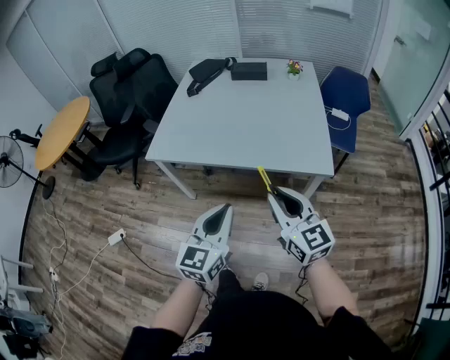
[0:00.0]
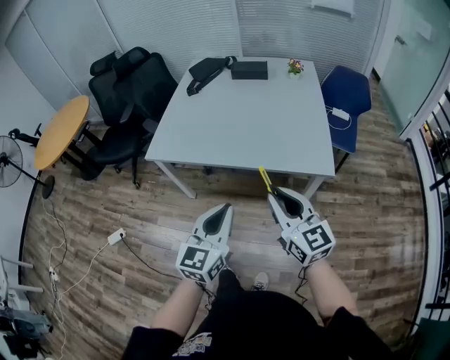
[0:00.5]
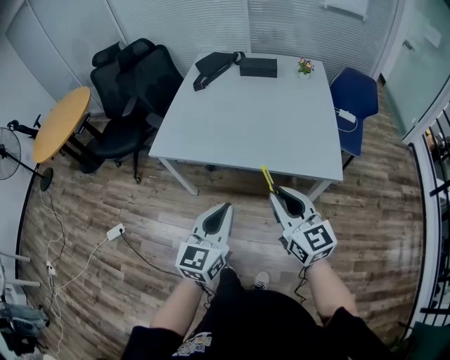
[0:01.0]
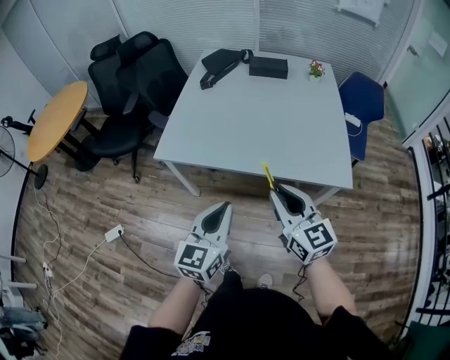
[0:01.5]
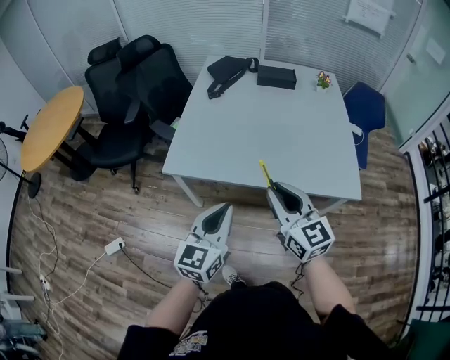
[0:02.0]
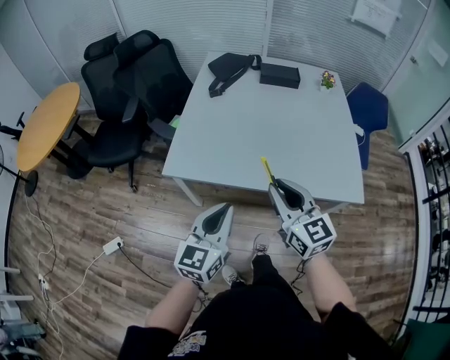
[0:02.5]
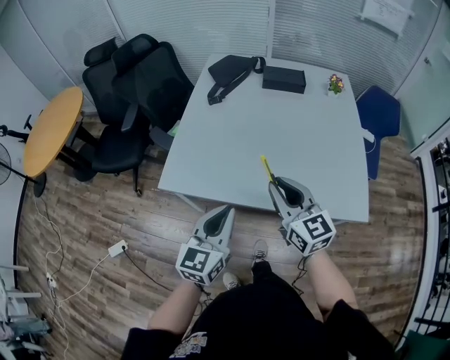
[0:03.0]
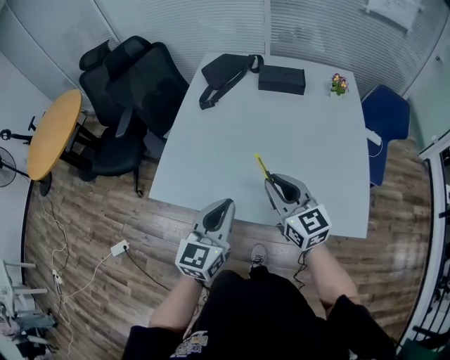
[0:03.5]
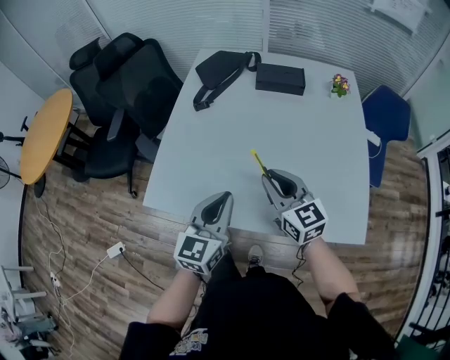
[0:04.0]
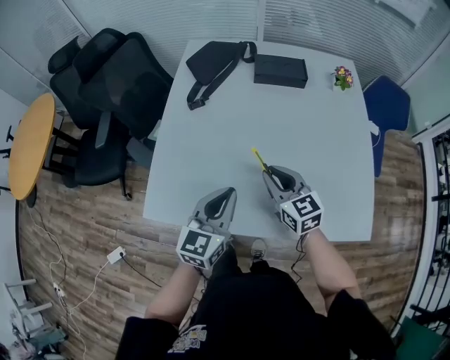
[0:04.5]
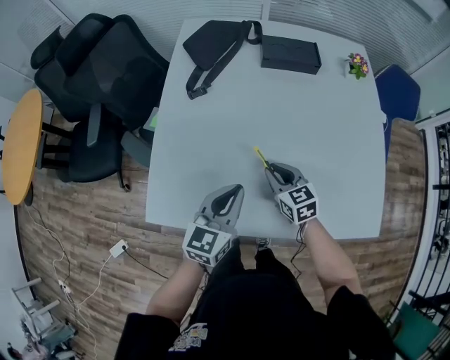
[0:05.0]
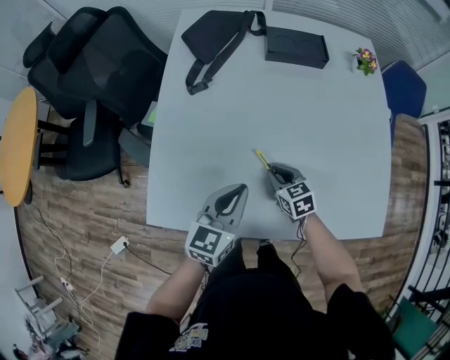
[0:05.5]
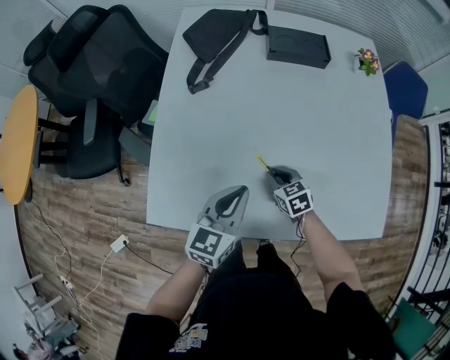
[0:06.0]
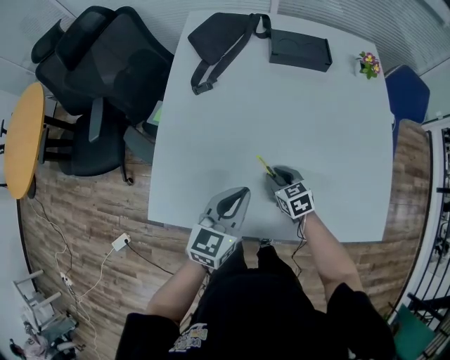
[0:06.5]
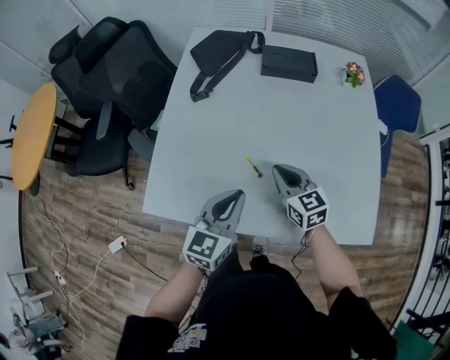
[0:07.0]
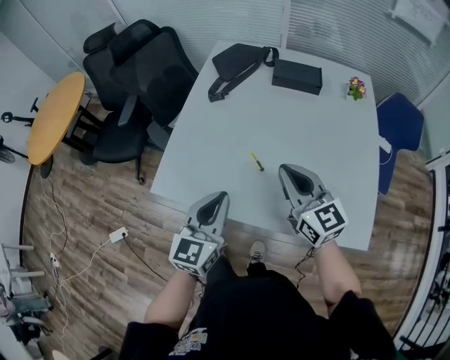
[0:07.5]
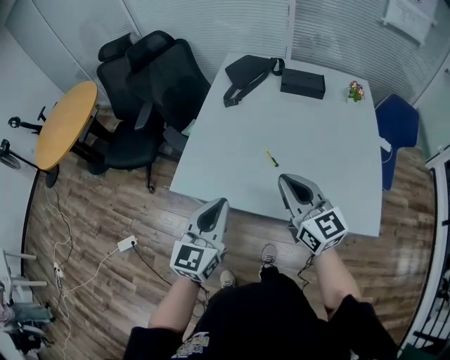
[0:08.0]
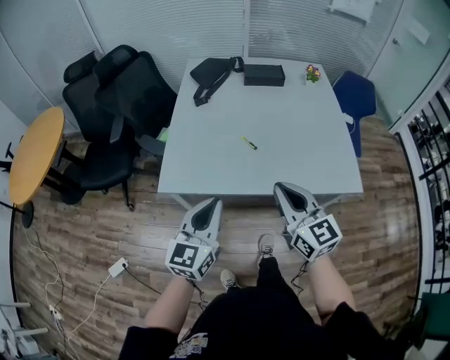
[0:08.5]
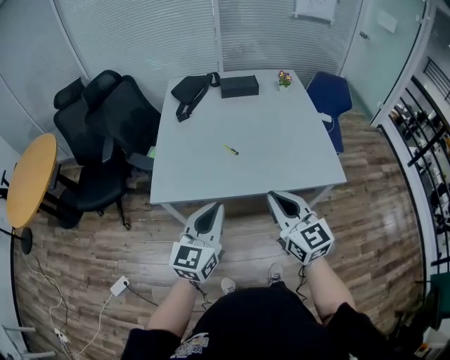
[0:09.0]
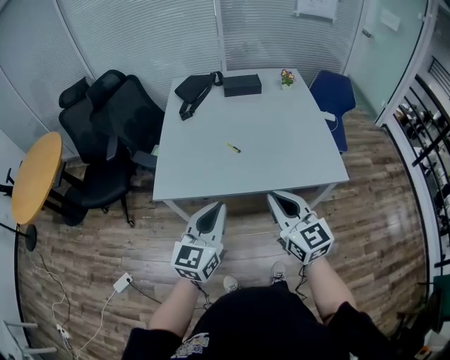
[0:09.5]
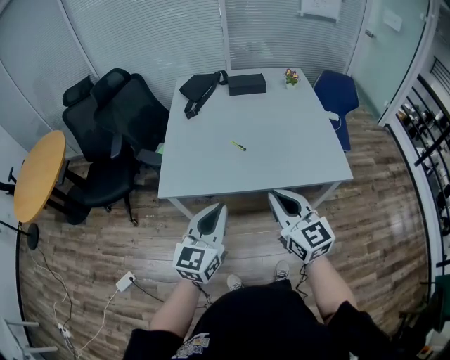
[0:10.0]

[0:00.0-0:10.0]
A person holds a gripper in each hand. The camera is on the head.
0:00.0 to 0:02.0: The two grippers go some 25 cm to the left and forward.
0:02.0 to 0:04.0: Both grippers move forward, roughly 25 cm.
0:04.0 to 0:06.0: The right gripper goes some 25 cm downward, and points its fingers some 40 degrees further downward. The left gripper moves downward and forward, some 15 cm.
0:06.0 to 0:08.0: The left gripper goes about 25 cm backward and upward, and swivels some 20 degrees, while the right gripper is displaced upward and backward by about 40 cm, and tilts its fingers some 50 degrees upward.
0:08.0 to 0:10.0: Both grippers travel together backward, approximately 15 cm.

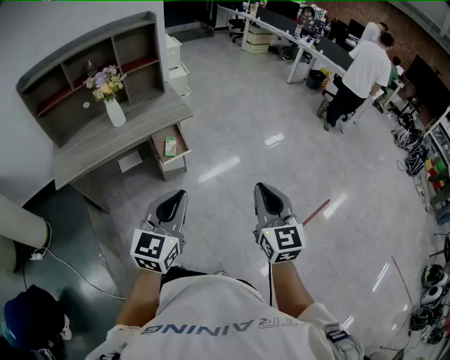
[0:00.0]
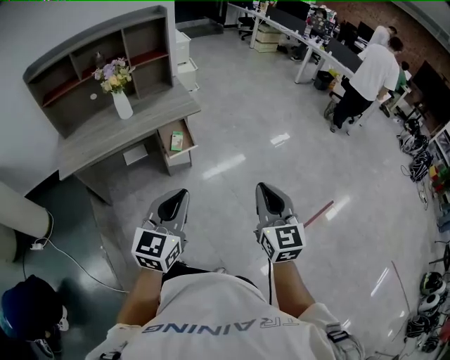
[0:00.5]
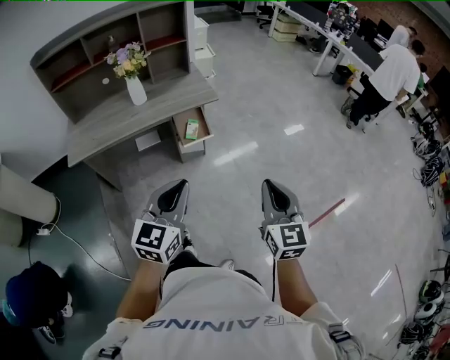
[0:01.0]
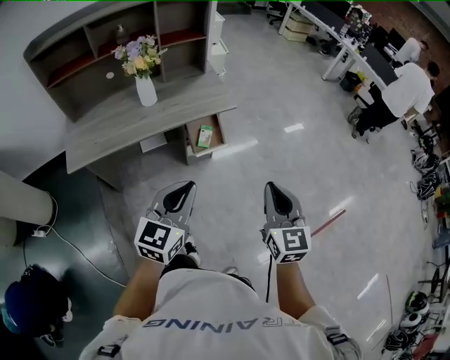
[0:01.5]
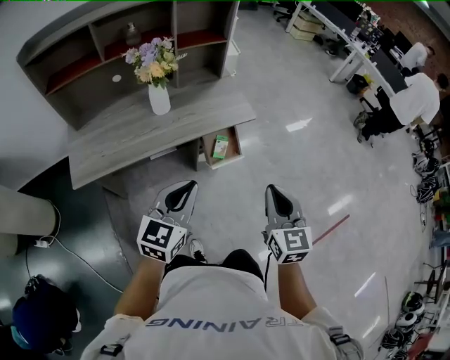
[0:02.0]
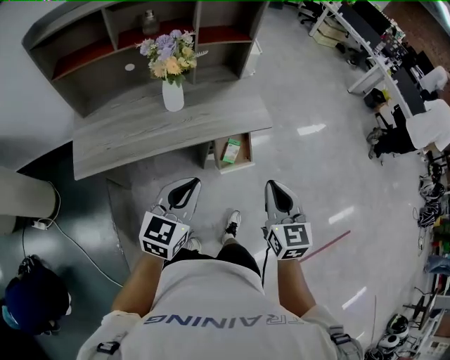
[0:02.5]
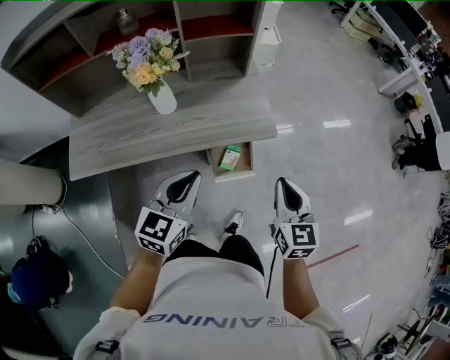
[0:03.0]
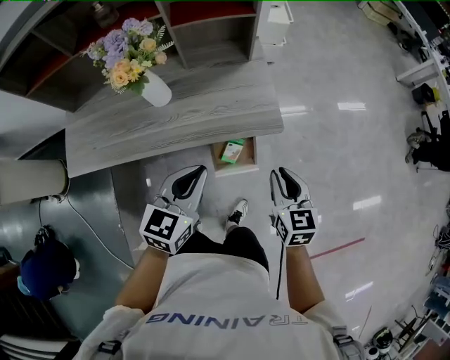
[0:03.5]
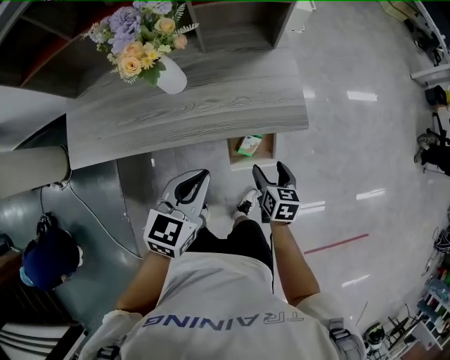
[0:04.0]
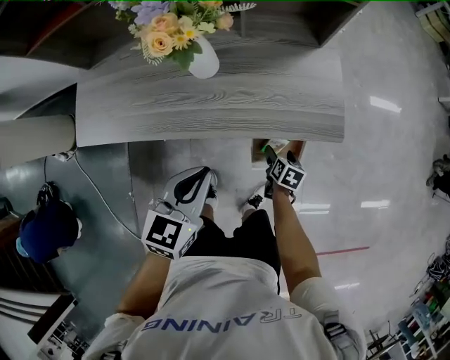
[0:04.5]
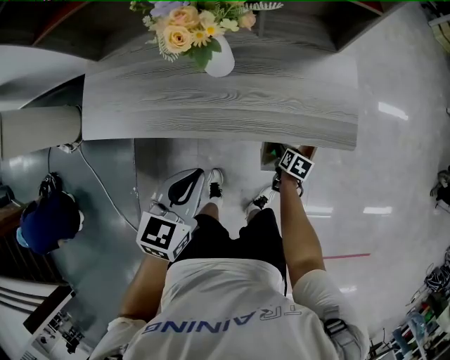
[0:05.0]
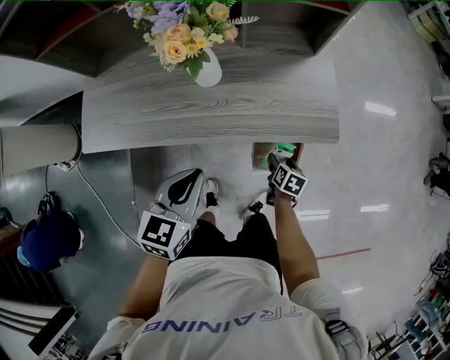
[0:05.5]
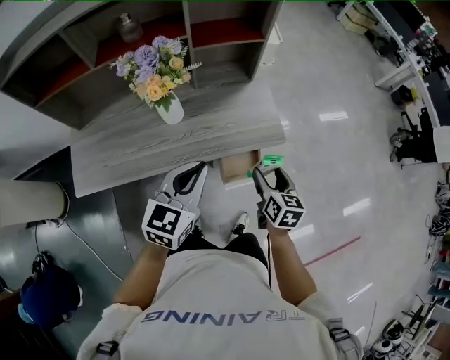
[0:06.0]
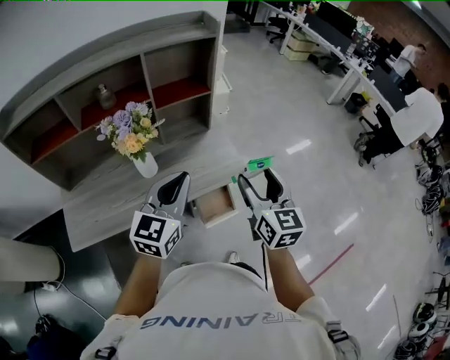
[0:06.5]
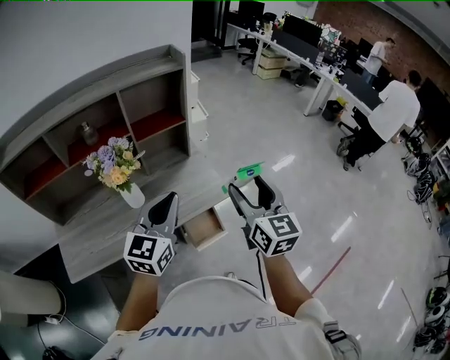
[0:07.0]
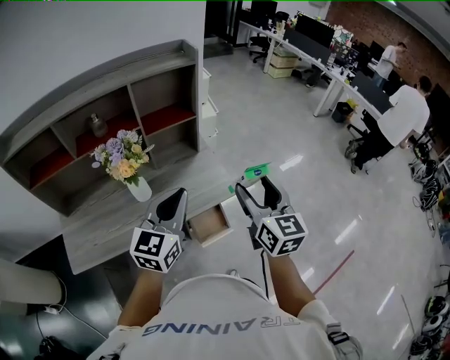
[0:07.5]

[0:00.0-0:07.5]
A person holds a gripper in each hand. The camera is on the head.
0:00.0 to 0:02.0: The two grippers go some 30 cm to the left and forward.
0:02.0 to 0:04.0: The left gripper heads forward and downward, covering about 25 cm, and changes its angle by some 20 degrees, while the right gripper goes about 40 cm downward and forward, tips its fingers downward by about 30 degrees, and opens.
0:04.0 to 0:05.5: The right gripper shifts approximately 15 cm downward. Meanwhile the left gripper goes about 10 cm to the left.
0:05.5 to 0:07.5: The right gripper moves upward, some 60 cm, and tilts its fingers some 50 degrees upward, while the left gripper goes roughly 30 cm upward and to the right, and tilts its fingers about 30 degrees upward.

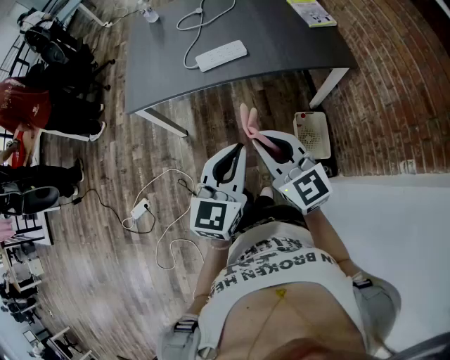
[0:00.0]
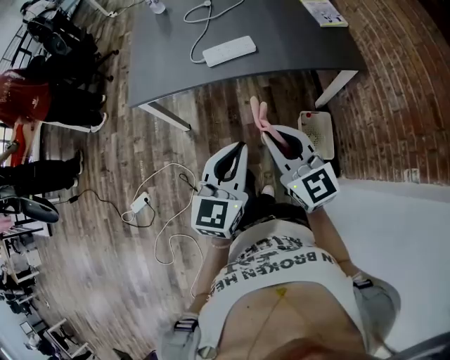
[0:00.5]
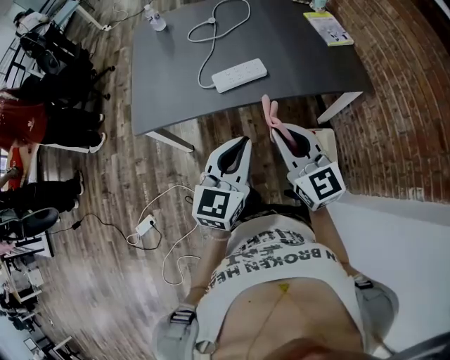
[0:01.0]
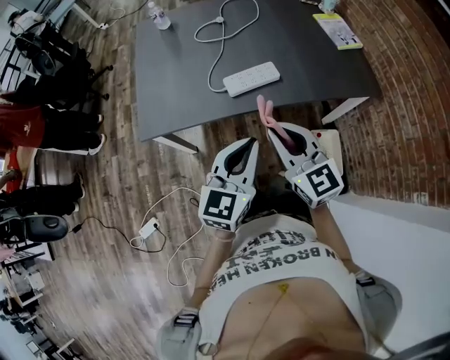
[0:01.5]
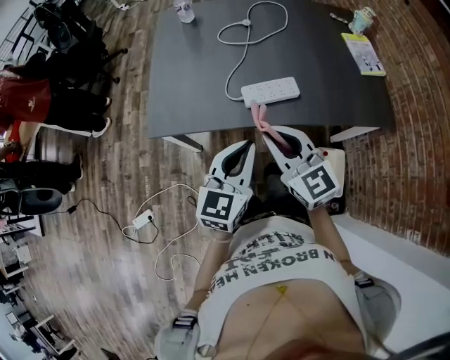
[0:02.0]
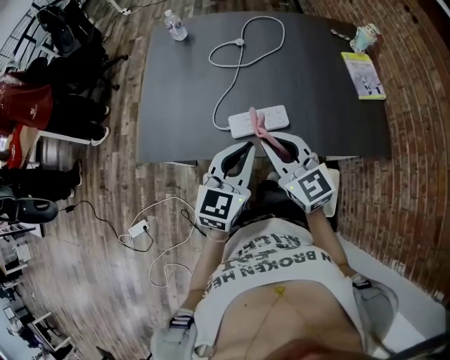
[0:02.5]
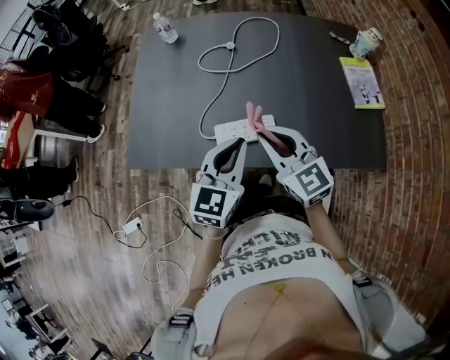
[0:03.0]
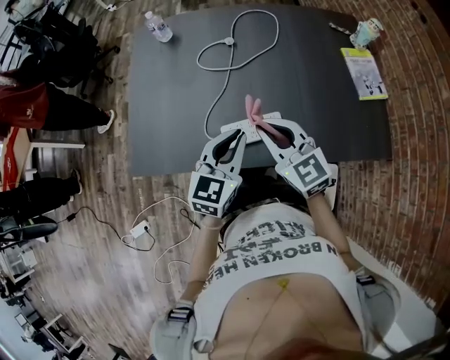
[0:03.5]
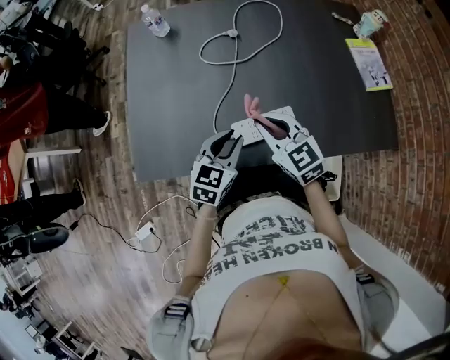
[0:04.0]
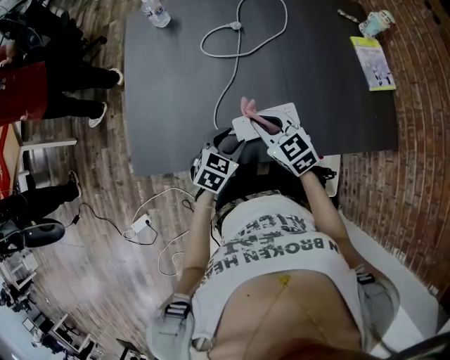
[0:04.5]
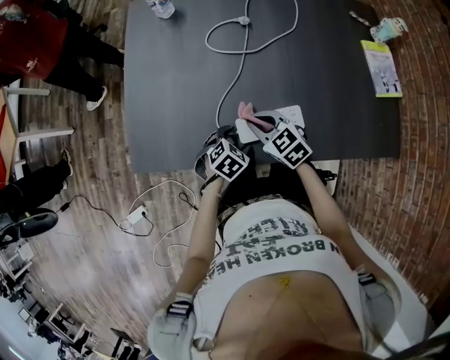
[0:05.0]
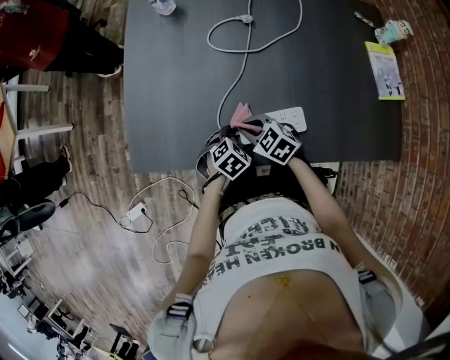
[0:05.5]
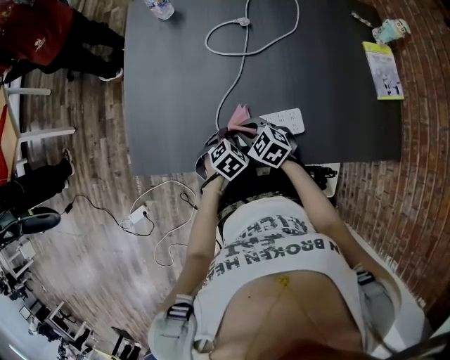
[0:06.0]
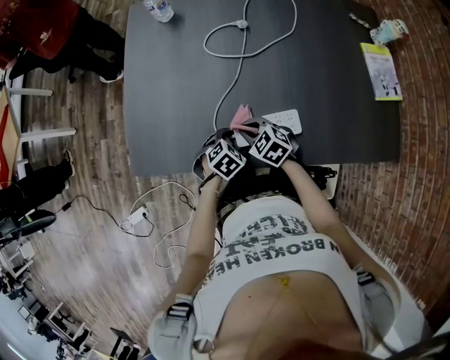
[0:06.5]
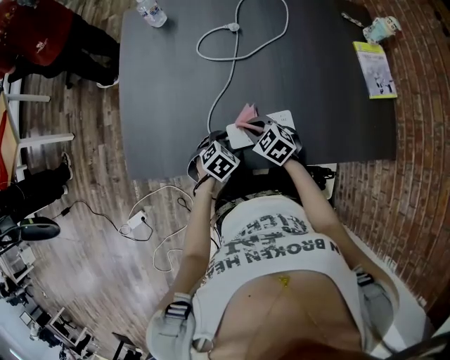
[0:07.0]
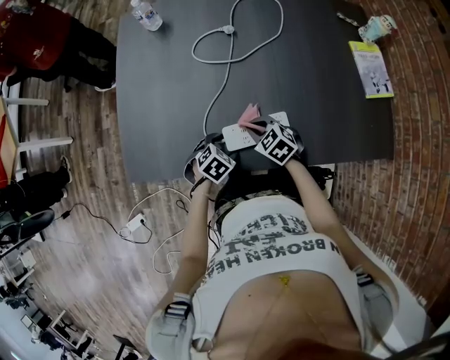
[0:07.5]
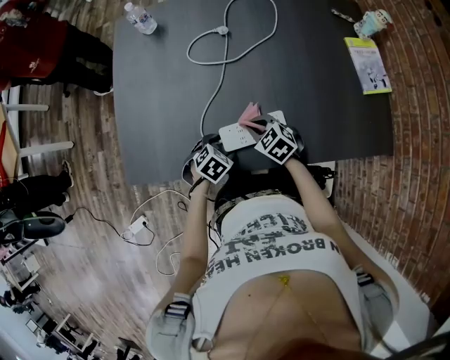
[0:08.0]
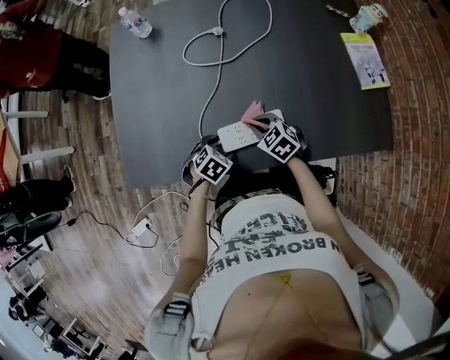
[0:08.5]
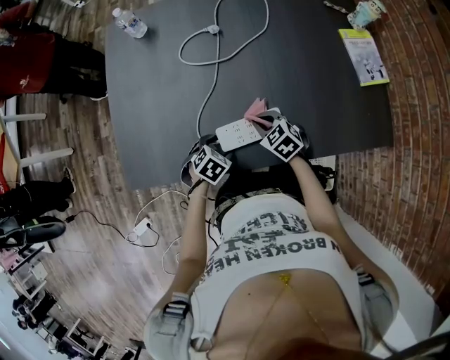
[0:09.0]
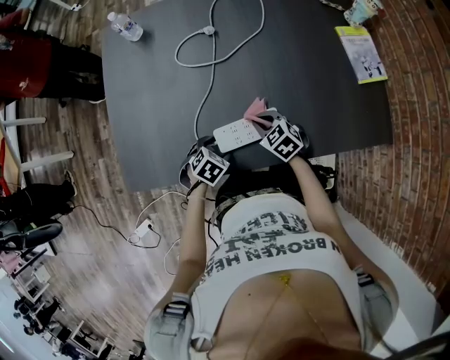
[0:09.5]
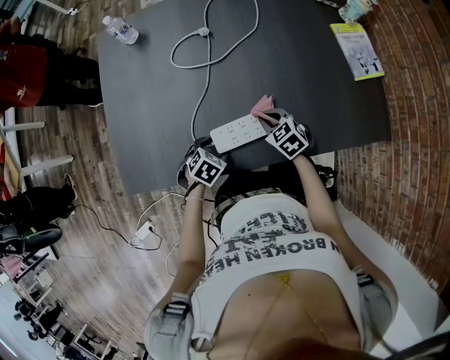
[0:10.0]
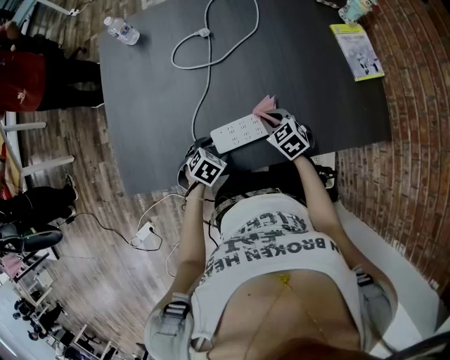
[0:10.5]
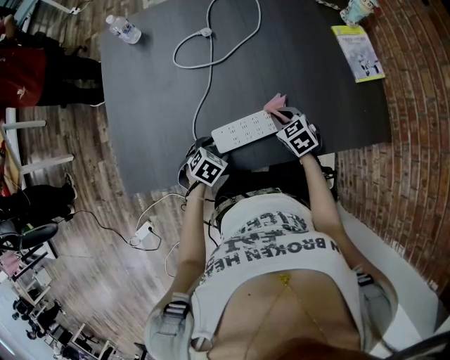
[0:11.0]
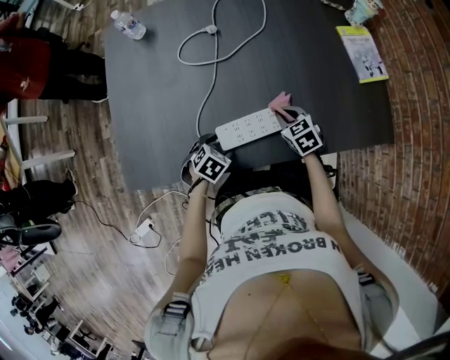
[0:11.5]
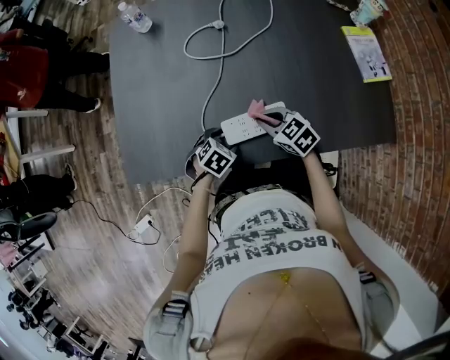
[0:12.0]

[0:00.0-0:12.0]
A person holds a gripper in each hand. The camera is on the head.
0:00.0 to 0:02.0: The two grippers go about 30 cm forward and to the left.
0:02.0 to 0:04.0: Both grippers move forward and downward, approximately 25 cm. The left gripper swivels about 20 degrees.
0:04.0 to 0:06.0: Both grippers travel together downward, about 20 cm. The right gripper changes its angle by approximately 40 degrees. Meanwhile the left gripper tips its fingers downward by approximately 30 degrees, and opens.
0:06.0 to 0:08.0: The right gripper shifts by some 10 cm.
0:08.0 to 0:10.0: The right gripper is displaced to the right by roughly 10 cm.
0:10.0 to 0:12.0: The right gripper shifts by some 5 cm.
